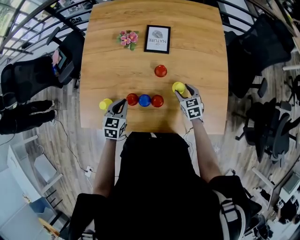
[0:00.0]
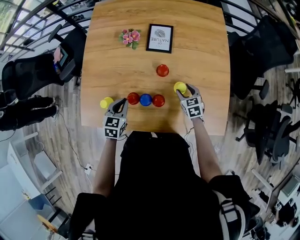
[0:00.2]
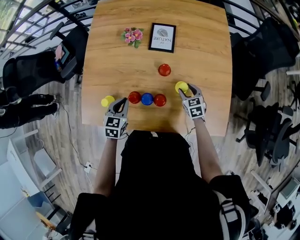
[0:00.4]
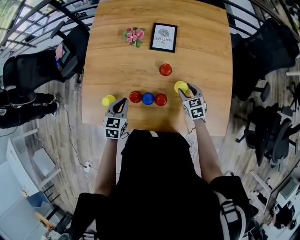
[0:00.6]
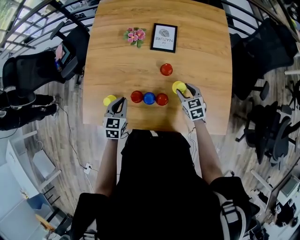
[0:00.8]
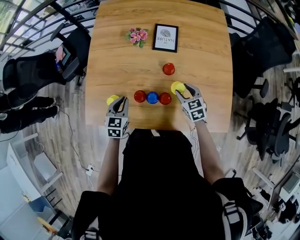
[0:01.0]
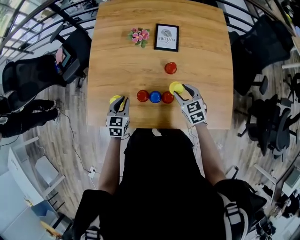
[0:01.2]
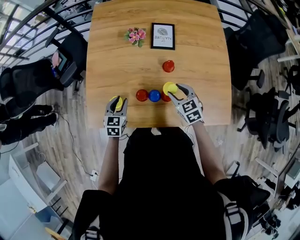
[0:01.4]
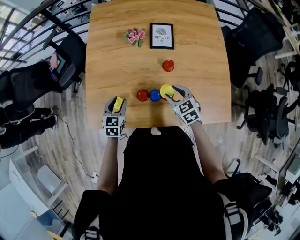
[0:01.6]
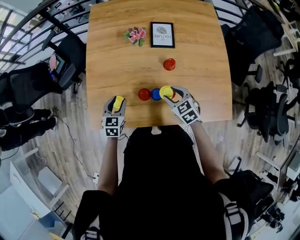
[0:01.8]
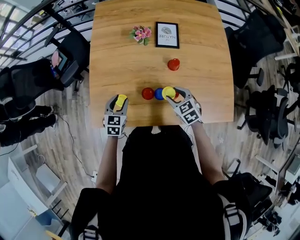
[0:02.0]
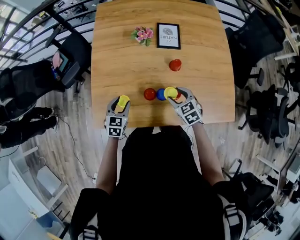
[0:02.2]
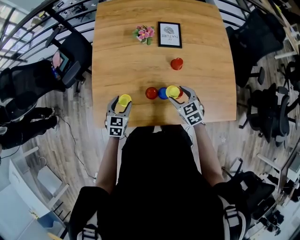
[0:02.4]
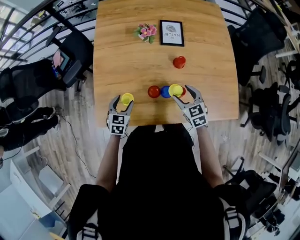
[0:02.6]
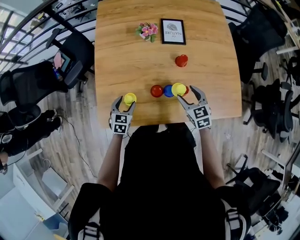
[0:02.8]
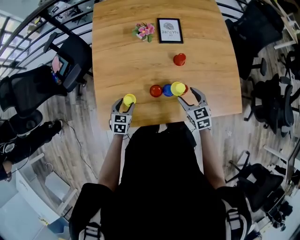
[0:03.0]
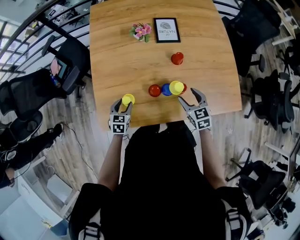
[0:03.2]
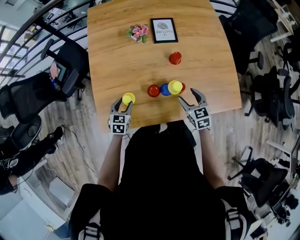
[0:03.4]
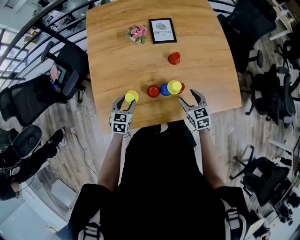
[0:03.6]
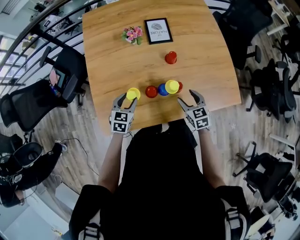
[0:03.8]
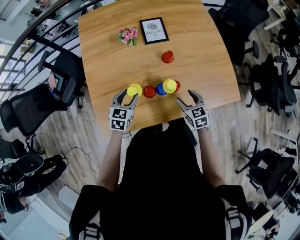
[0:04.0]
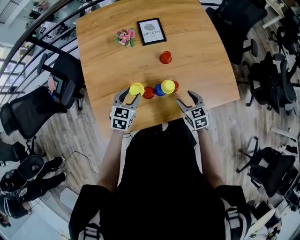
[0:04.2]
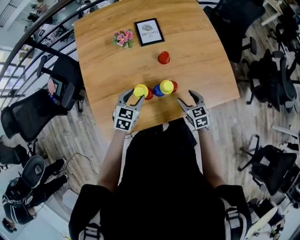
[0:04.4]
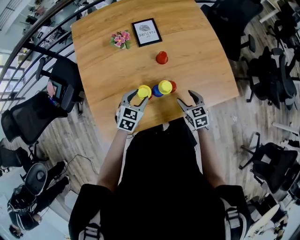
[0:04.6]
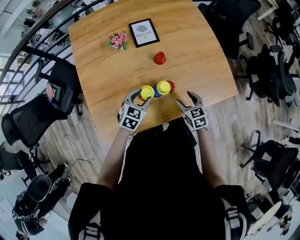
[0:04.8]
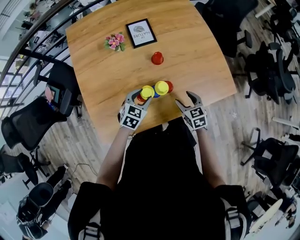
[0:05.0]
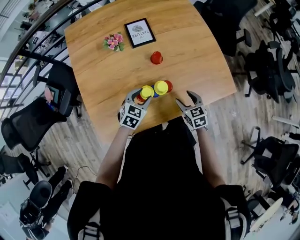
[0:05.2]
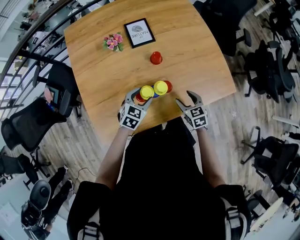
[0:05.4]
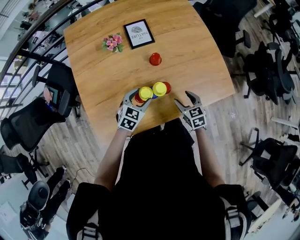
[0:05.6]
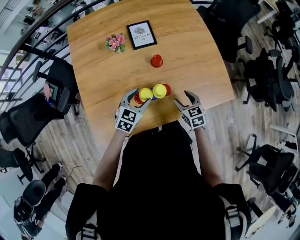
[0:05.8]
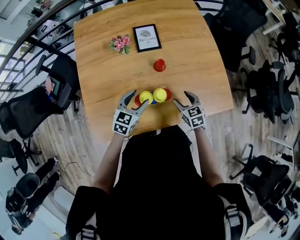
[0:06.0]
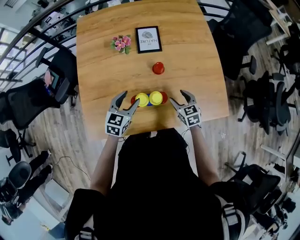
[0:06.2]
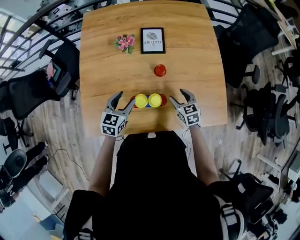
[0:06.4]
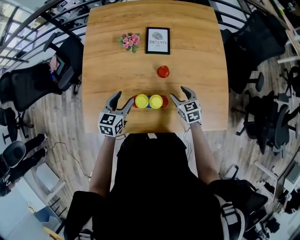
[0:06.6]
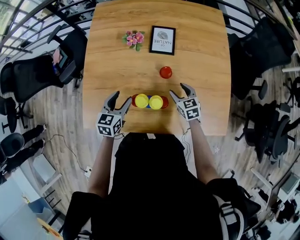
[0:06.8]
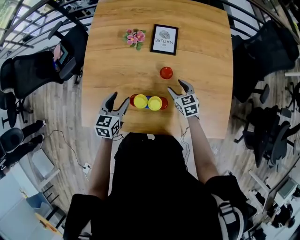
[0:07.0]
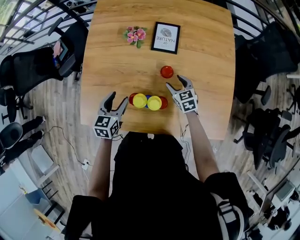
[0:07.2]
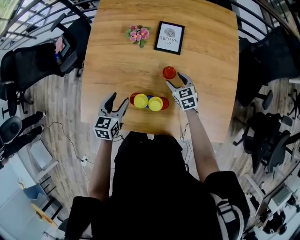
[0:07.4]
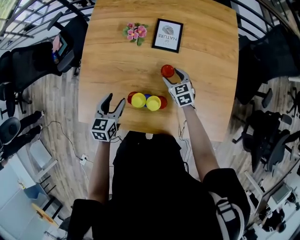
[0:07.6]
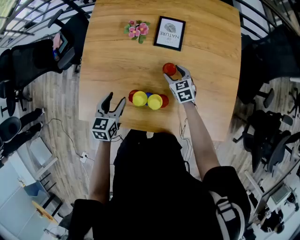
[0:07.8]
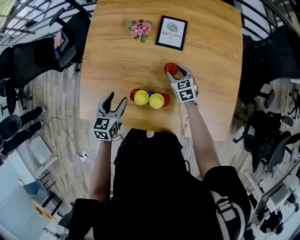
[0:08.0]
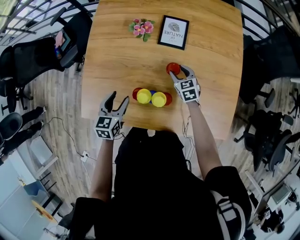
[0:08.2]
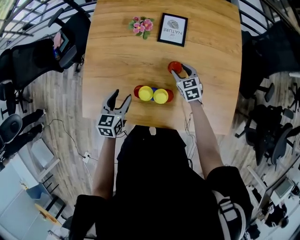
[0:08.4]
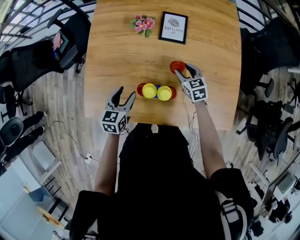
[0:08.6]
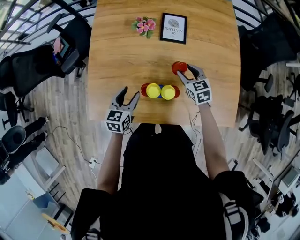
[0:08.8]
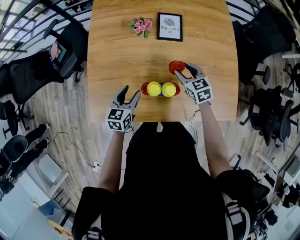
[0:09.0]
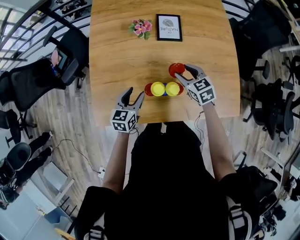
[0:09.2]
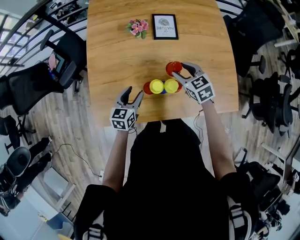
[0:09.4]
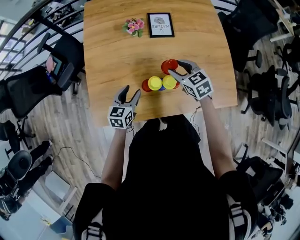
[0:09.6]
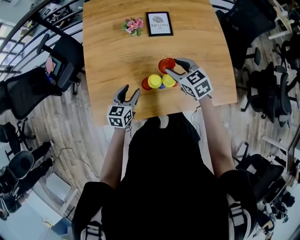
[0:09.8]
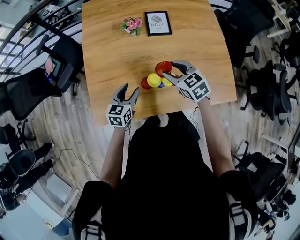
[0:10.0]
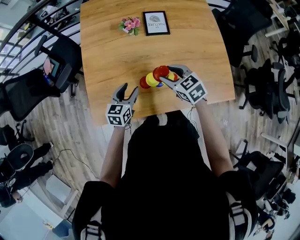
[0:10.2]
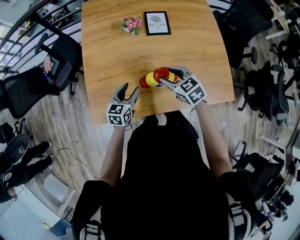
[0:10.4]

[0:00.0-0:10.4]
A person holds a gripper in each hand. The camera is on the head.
0:00.0 to 0:01.4: The left gripper heads to the left, covering approximately 10 cm, and opens. Meanwhile the right gripper moves to the left and upward, approximately 15 cm.
0:01.4 to 0:03.0: The left gripper travels downward and to the left by about 10 cm, and opens; the right gripper changes place by roughly 5 cm.
0:03.0 to 0:04.4: The right gripper goes approximately 5 cm to the right; the left gripper is displaced to the right, upward and forward by approximately 15 cm, and changes its angle by some 20 degrees.
0:04.4 to 0:06.0: The left gripper moves to the right, roughly 5 cm.
0:06.0 to 0:07.4: The right gripper ends up some 20 cm from where it was, and rotates approximately 20 degrees; the left gripper ends up roughly 10 cm from where it was, and turns by roughly 40 degrees.
0:07.4 to 0:09.0: The right gripper moves upward, some 10 cm.
0:09.0 to 0:10.4: The right gripper is displaced backward, to the left and upward by approximately 15 cm.

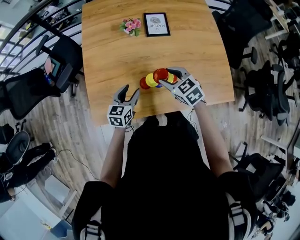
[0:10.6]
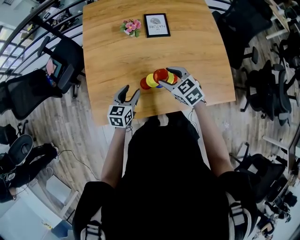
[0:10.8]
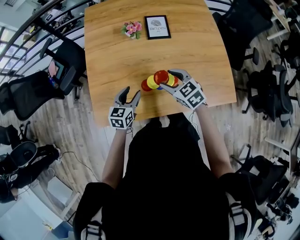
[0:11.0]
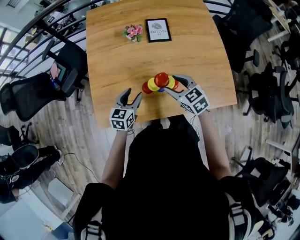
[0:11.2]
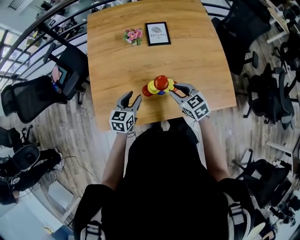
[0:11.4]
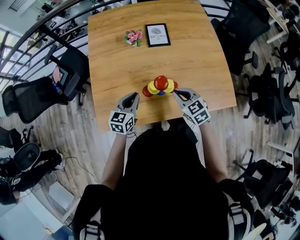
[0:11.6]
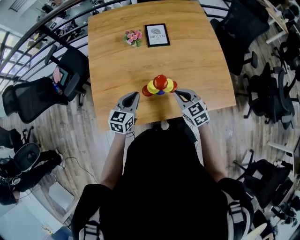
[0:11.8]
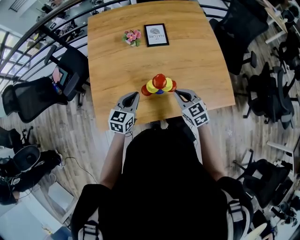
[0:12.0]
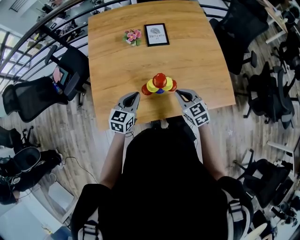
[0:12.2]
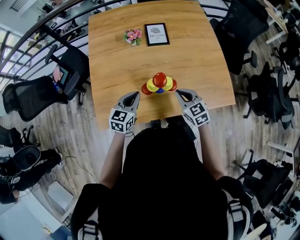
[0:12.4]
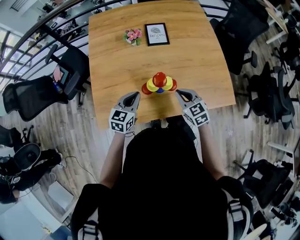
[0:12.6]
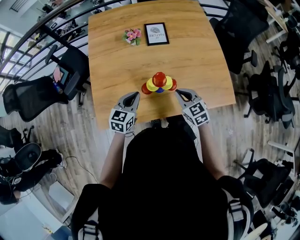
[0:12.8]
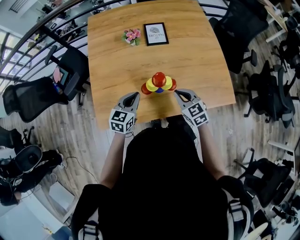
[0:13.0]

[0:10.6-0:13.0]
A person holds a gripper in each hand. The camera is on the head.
0:10.6 to 0:11.8: The right gripper goes roughly 10 cm backward and to the right, and closes. The left gripper is displaced upward by some 5 cm, and closes its fingers.
0:11.8 to 0:13.0: The grippers make only small movements.

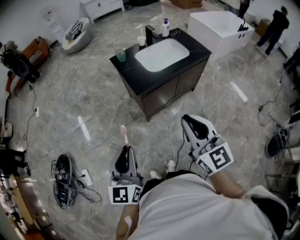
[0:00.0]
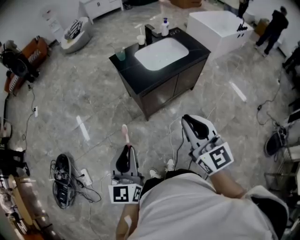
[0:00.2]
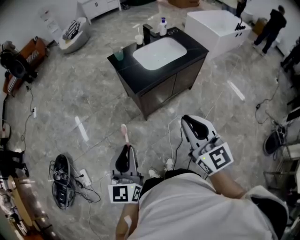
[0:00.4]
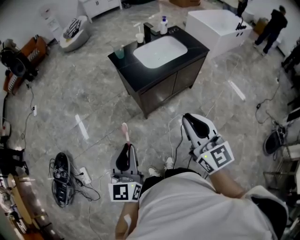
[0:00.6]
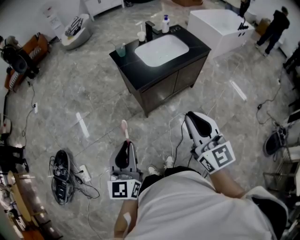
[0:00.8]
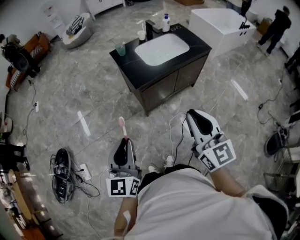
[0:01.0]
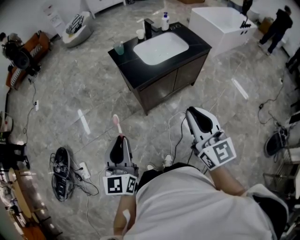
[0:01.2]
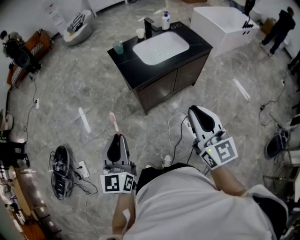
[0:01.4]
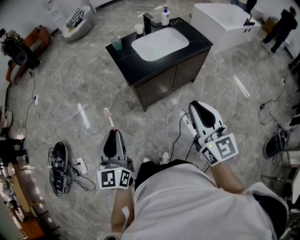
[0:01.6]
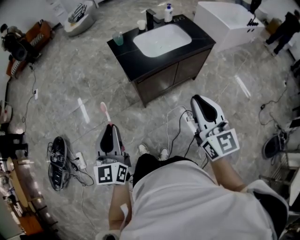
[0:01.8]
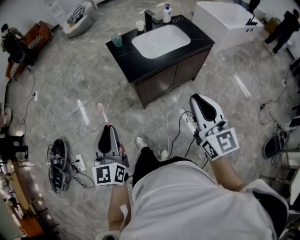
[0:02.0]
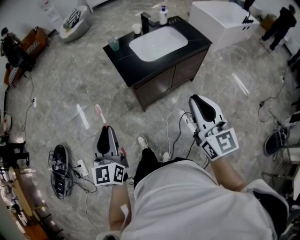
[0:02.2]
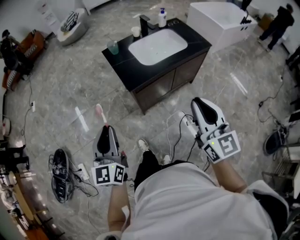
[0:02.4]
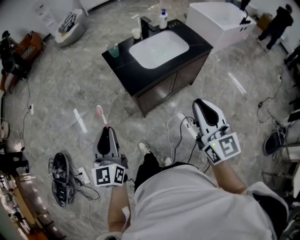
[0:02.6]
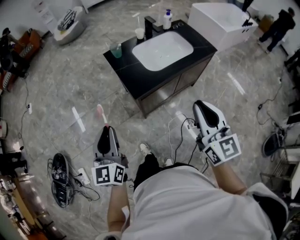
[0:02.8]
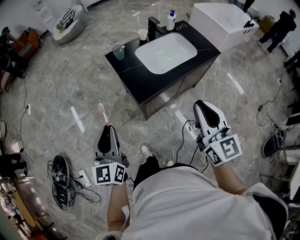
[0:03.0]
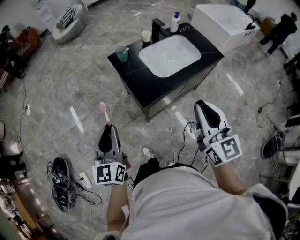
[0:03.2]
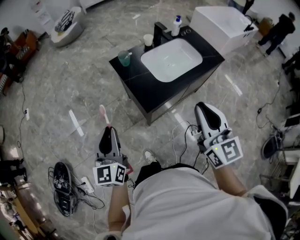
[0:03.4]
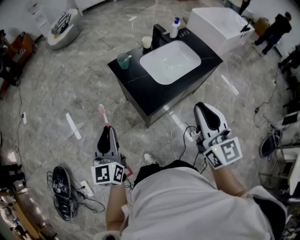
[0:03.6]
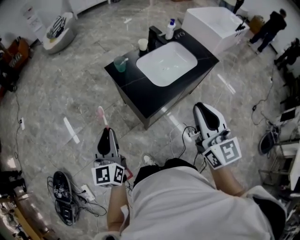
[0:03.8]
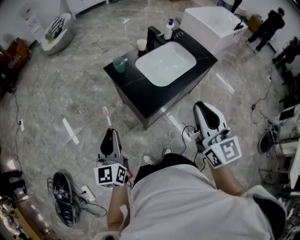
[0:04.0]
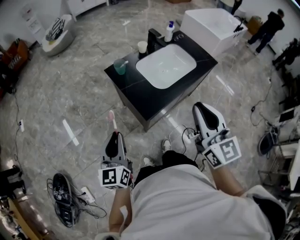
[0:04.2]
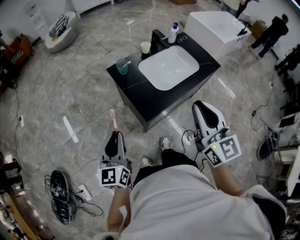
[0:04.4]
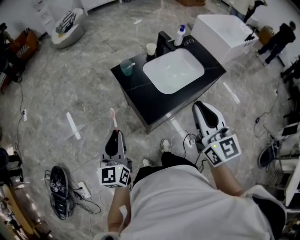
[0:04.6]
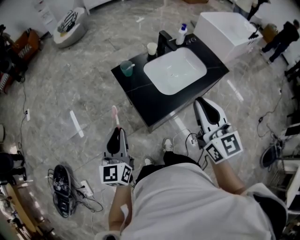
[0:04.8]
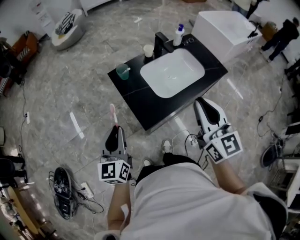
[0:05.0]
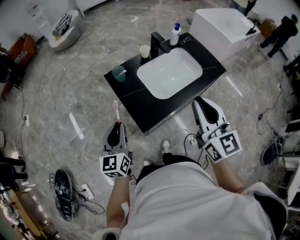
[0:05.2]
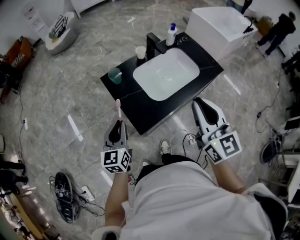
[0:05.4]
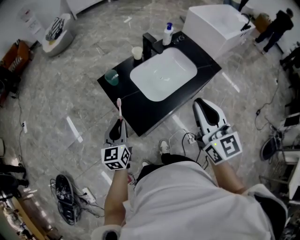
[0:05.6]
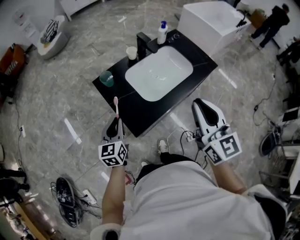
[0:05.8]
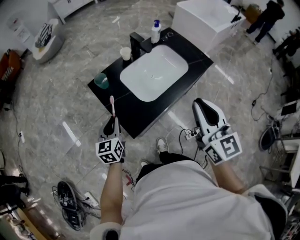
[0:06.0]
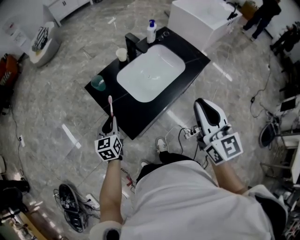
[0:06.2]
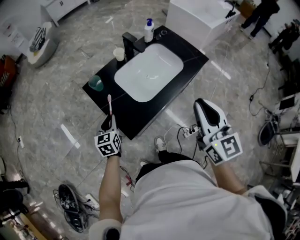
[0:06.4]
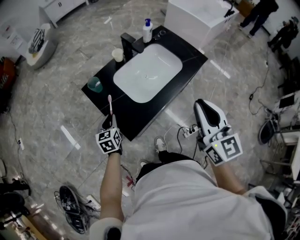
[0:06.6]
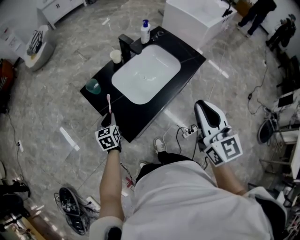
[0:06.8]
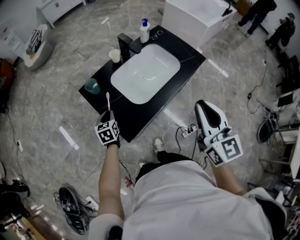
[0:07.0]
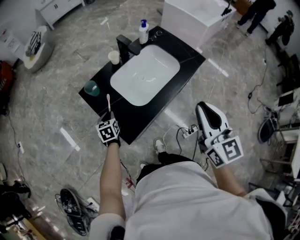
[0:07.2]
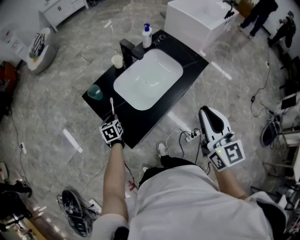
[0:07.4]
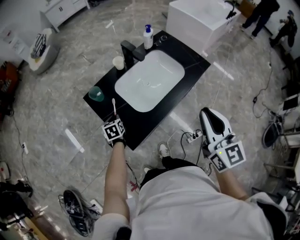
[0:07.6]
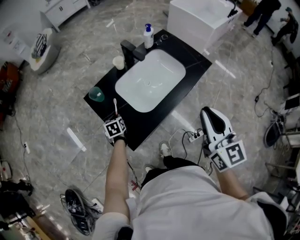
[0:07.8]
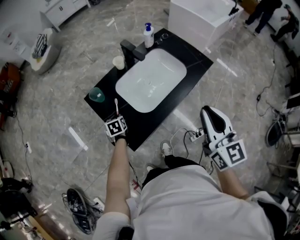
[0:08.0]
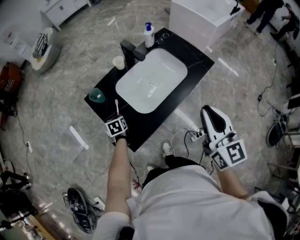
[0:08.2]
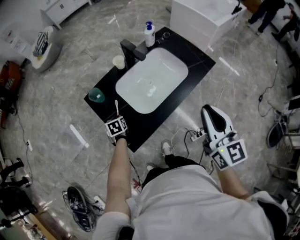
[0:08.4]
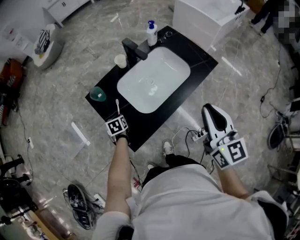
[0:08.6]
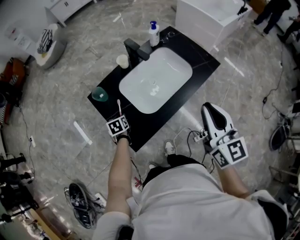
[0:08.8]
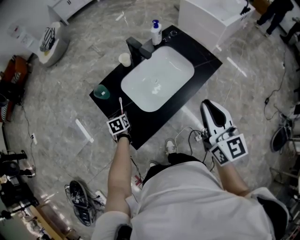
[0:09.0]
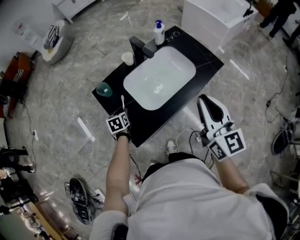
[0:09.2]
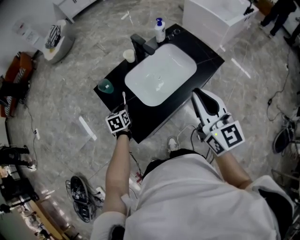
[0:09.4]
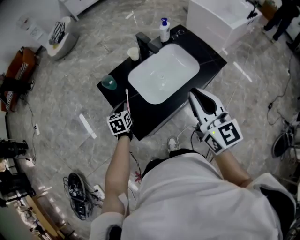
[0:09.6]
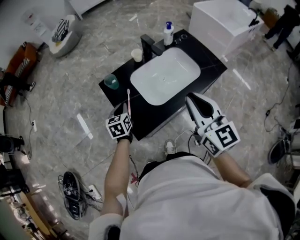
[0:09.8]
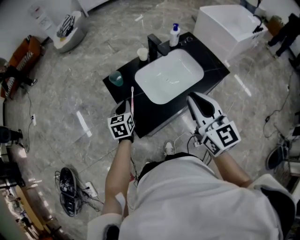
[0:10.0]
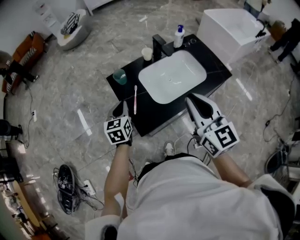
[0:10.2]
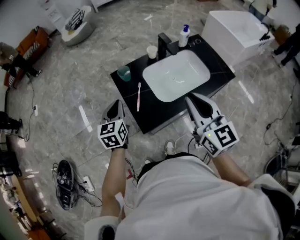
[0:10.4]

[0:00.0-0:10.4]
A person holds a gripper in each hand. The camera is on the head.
0:00.0 to 0:01.4: The right gripper heads to the right, covering approximately 5 cm.
0:01.4 to 0:03.0: Both grippers travel together forward, some 15 cm.
0:03.0 to 0:04.4: The right gripper is displaced forward and to the left by approximately 10 cm, while the left gripper heads forward, covering approximately 10 cm.
0:04.4 to 0:06.0: The right gripper moves to the right and forward, about 15 cm. Meanwhile the left gripper heads forward, downward and to the right, covering about 25 cm.
0:06.0 to 0:07.4: The left gripper travels downward and forward by roughly 15 cm, and rotates some 20 degrees; the right gripper is displaced to the right by roughly 5 cm.
0:07.4 to 0:09.0: The right gripper heads forward, covering some 5 cm. Meanwhile the left gripper opens.
0:09.0 to 0:10.4: The right gripper is displaced to the left by some 15 cm, and changes its angle by about 20 degrees. Meanwhile the left gripper moves upward, roughly 25 cm, angles its fingers upward, by some 30 degrees, and closes up.
